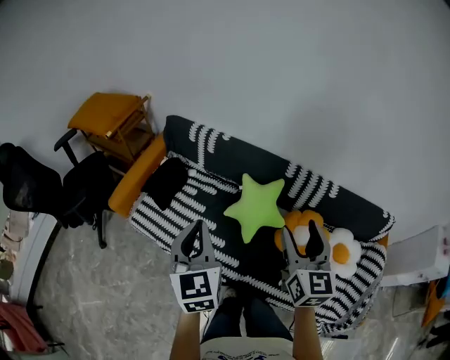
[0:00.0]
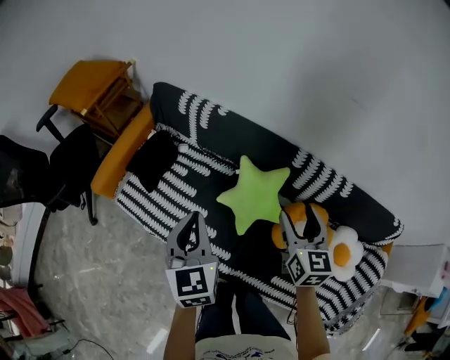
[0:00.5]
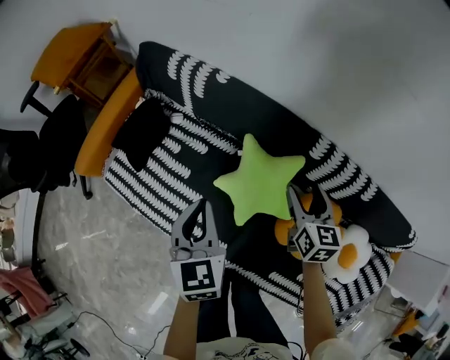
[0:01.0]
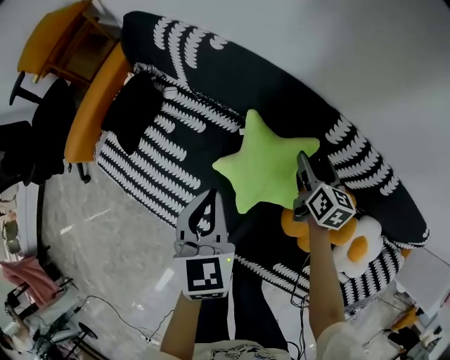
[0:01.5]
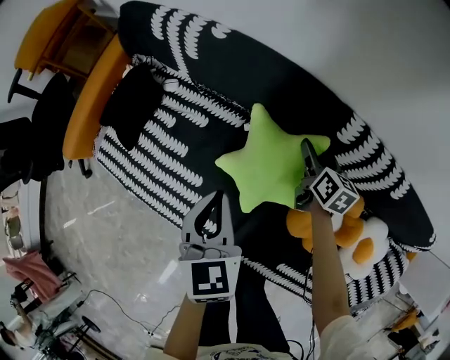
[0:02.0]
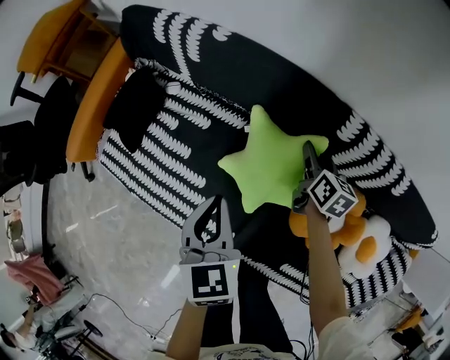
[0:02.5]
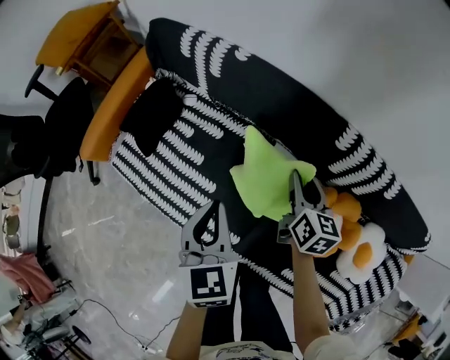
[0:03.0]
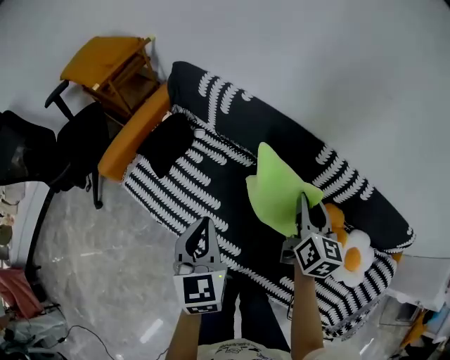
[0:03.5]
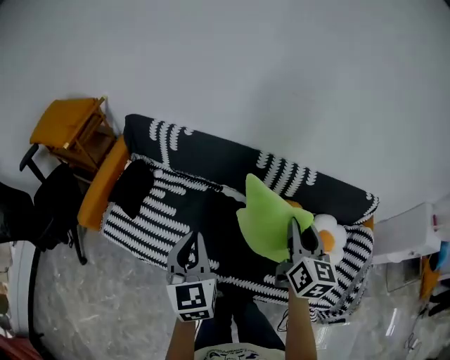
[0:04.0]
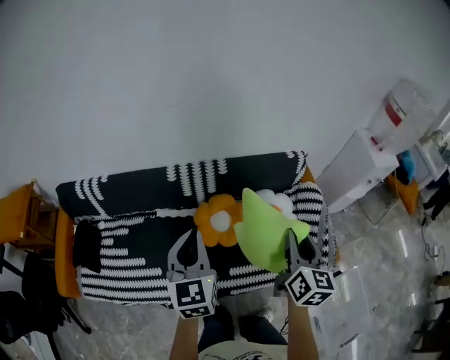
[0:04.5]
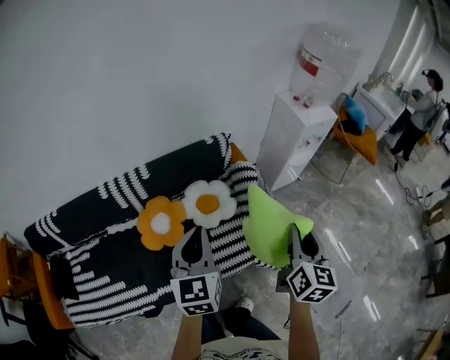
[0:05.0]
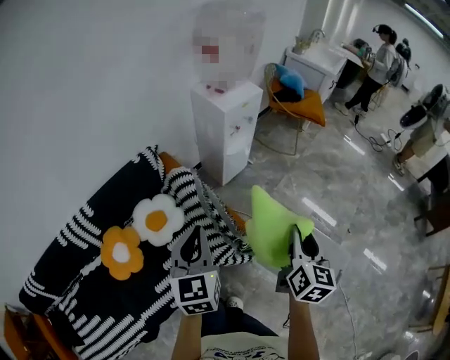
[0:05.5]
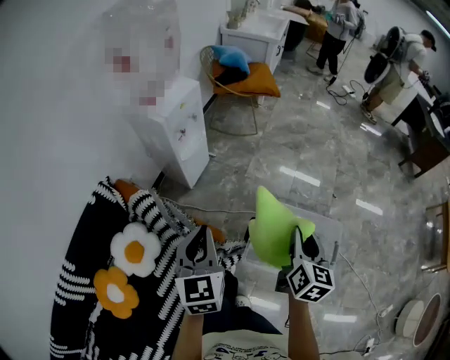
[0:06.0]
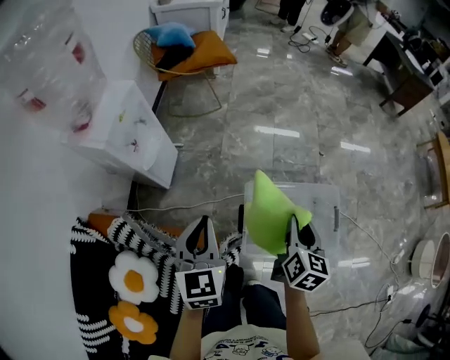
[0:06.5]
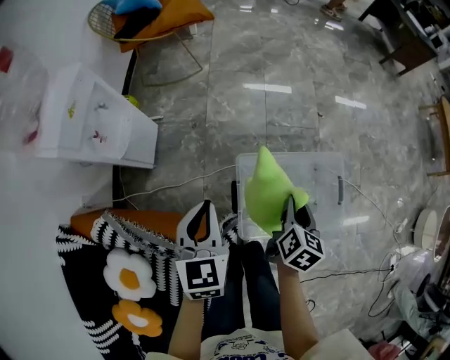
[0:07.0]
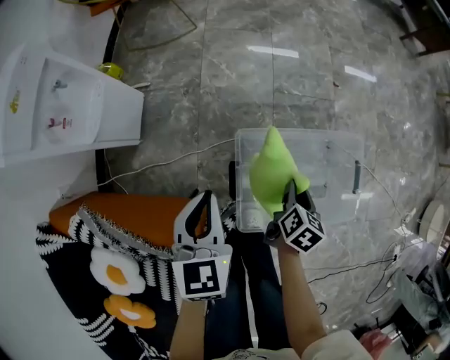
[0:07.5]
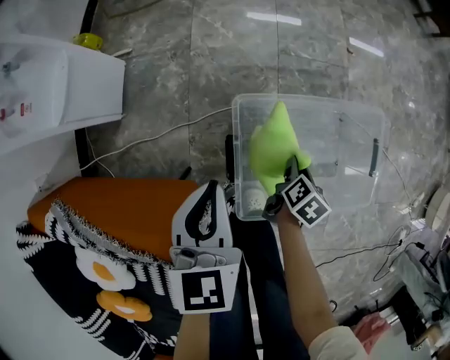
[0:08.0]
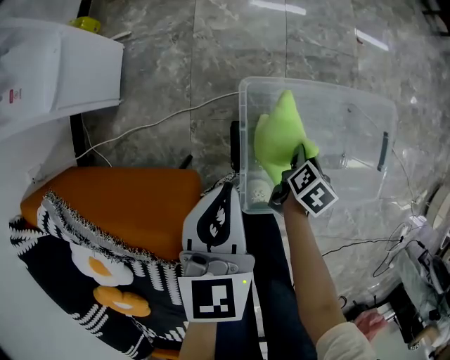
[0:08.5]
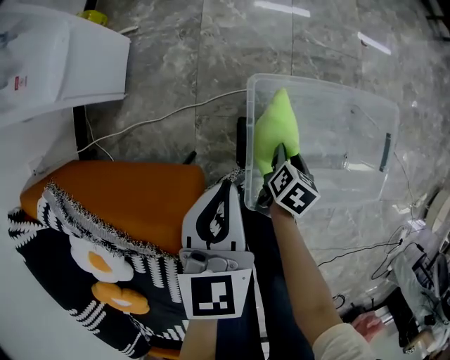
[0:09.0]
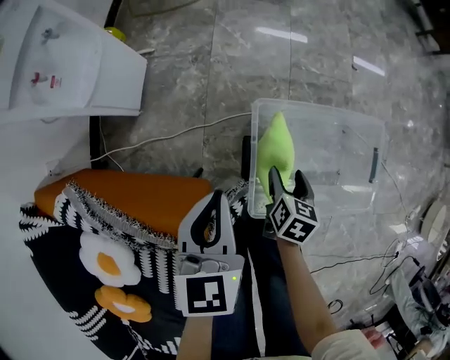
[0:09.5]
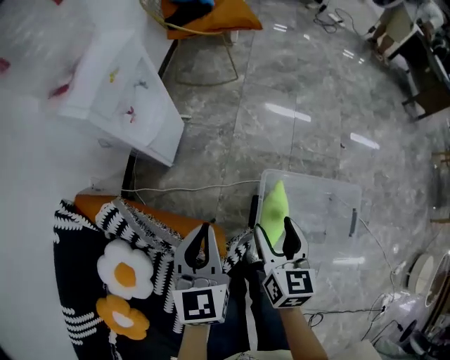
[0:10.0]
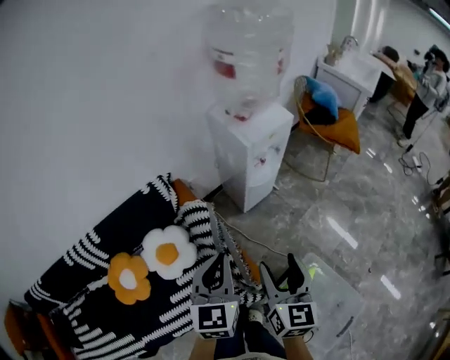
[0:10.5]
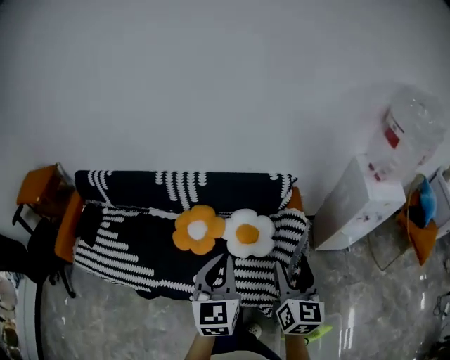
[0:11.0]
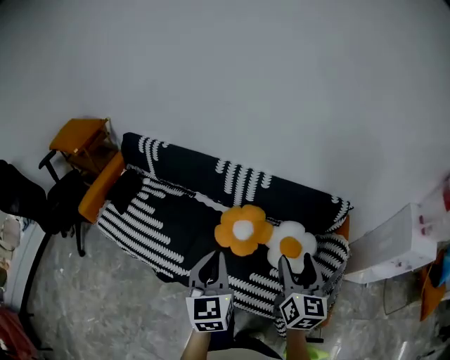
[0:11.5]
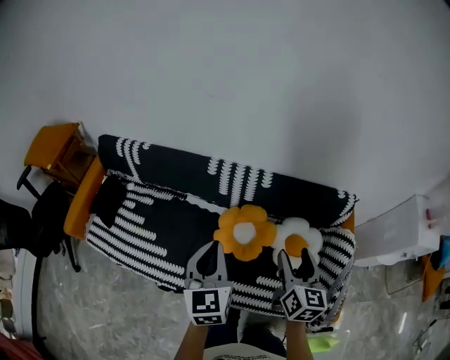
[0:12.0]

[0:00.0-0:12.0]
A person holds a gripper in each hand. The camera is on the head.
0:00.0 to 0:02.0: The two grippers go some 50 cm downward and forward. The right gripper changes its angle by approximately 40 degrees; the left gripper changes its angle by about 20 degrees.
0:02.0 to 0:04.0: The left gripper goes about 35 cm upward and backward, and changes its angle by about 20 degrees. The right gripper heads upward and backward, covering roughly 60 cm, rotates approximately 30 degrees, and closes.
0:04.0 to 0:06.0: Both grippers are carried roughly 1 m. The left gripper changes its angle by some 90 degrees. Meanwhile the right gripper rotates about 90 degrees.
0:06.0 to 0:08.0: Both grippers move downward, approximately 50 cm. The right gripper tilts its fingers some 40 degrees downward. Meanwhile the left gripper rotates about 30 degrees.
0:08.0 to 0:10.0: The left gripper shifts roughly 25 cm upward, while the right gripper travels upward by about 40 cm, turns by some 50 degrees, and opens.
0:10.0 to 0:12.0: The two grippers travel together, roughly 80 cm. The left gripper changes its angle by about 90 degrees, while the right gripper turns by about 80 degrees.

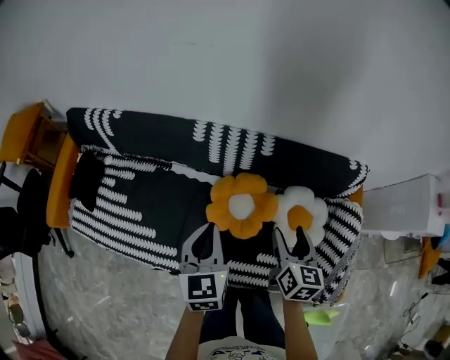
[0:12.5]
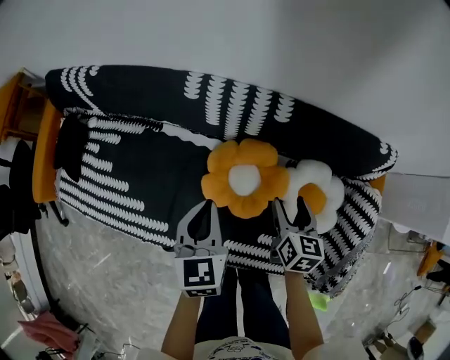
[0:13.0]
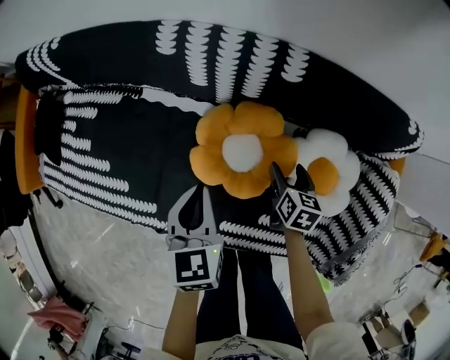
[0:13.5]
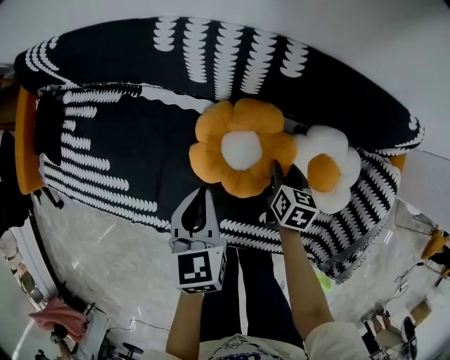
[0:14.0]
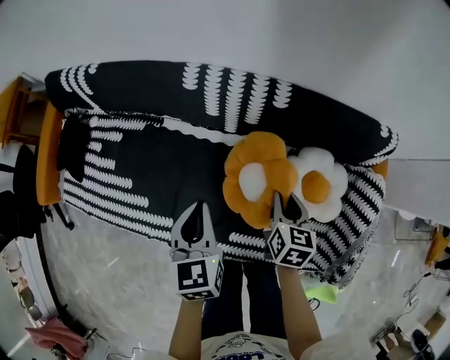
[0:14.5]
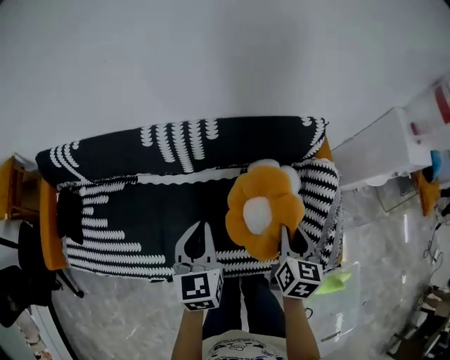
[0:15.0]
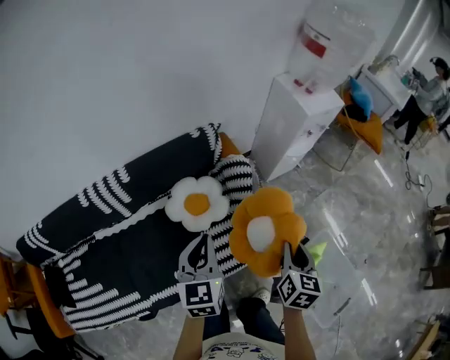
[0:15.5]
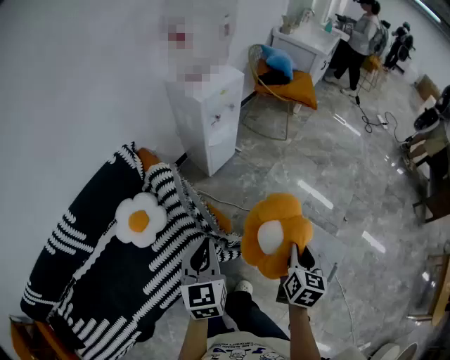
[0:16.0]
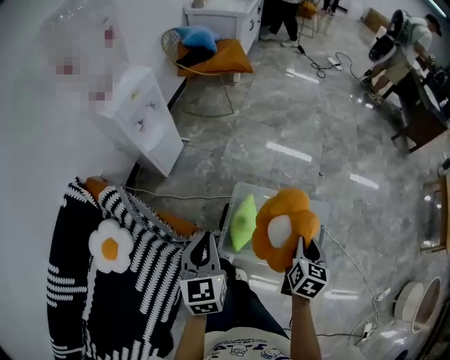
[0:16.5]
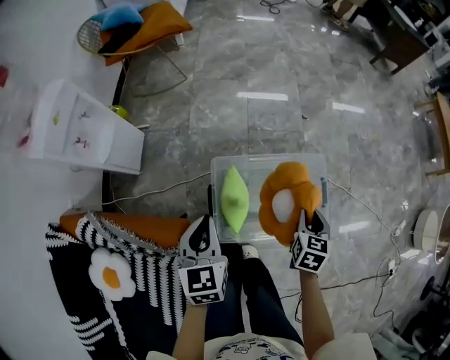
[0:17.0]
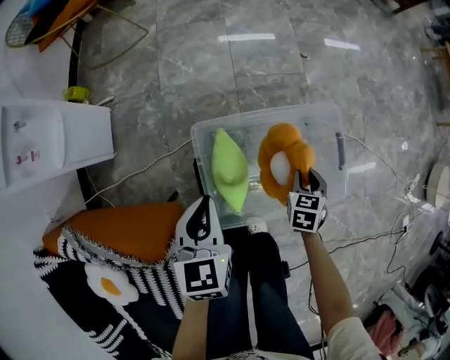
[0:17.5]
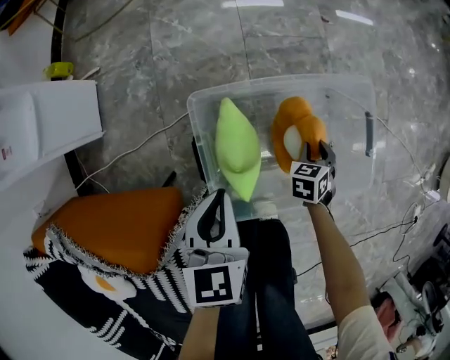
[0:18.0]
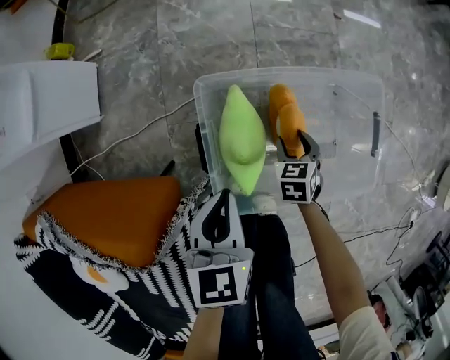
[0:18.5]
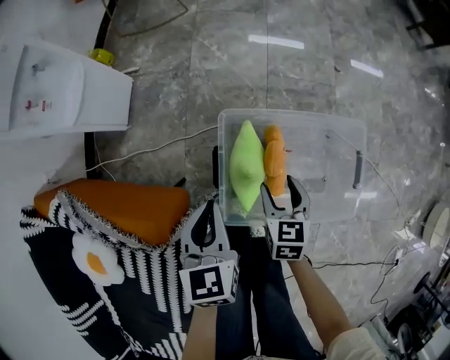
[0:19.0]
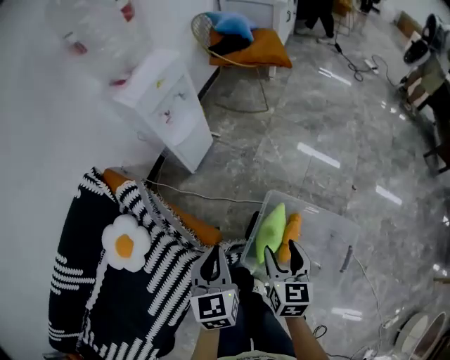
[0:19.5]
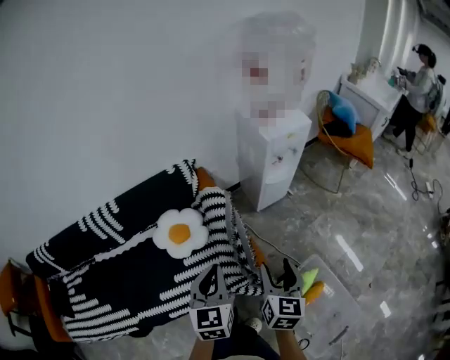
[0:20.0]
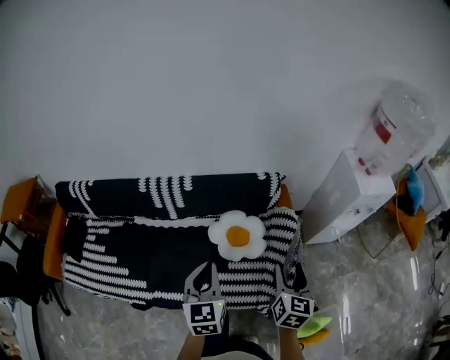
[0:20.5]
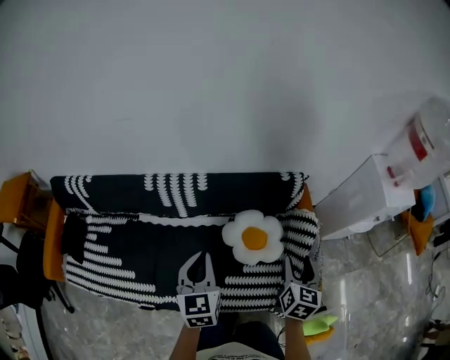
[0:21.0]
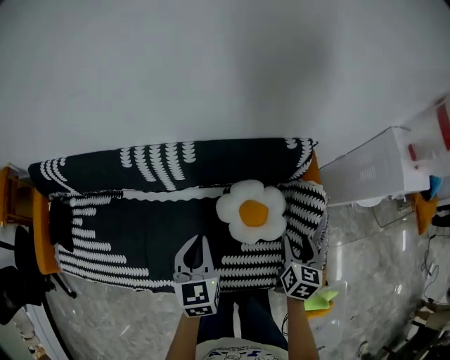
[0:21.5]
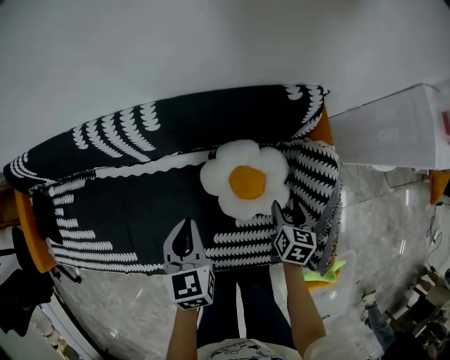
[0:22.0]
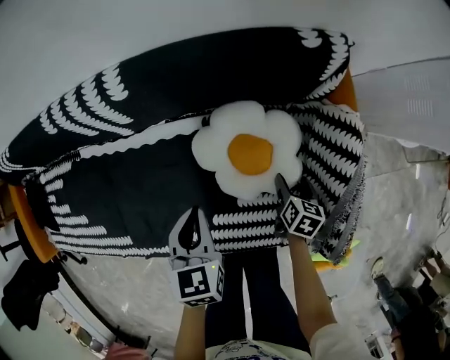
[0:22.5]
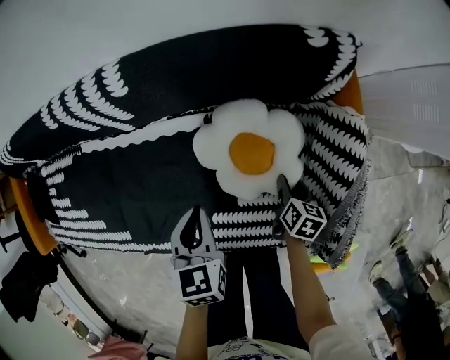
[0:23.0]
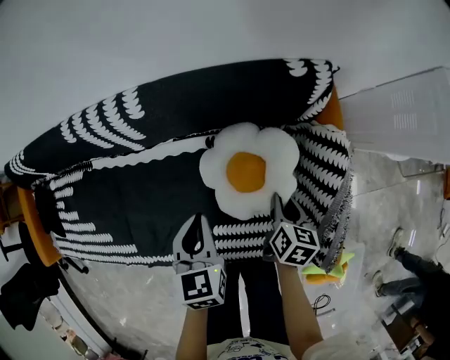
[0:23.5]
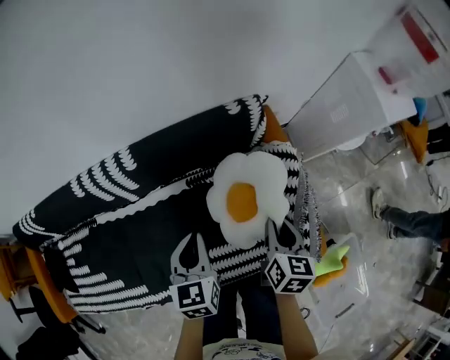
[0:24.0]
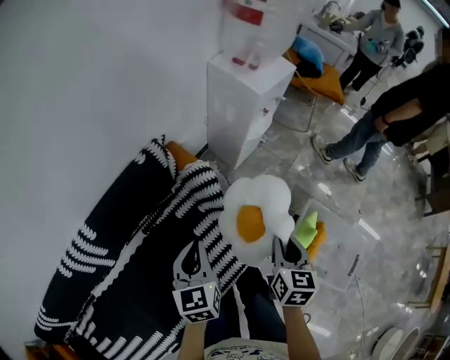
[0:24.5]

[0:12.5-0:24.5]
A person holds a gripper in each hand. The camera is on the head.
0:12.5 to 0:14.5: Both grippers move downward, approximately 15 cm. The right gripper closes up.
0:14.5 to 0:16.5: The two grippers travel together, approximately 1 m. The right gripper swivels roughly 90 degrees; the left gripper rotates approximately 90 degrees.
0:16.5 to 0:18.5: The two grippers go about 50 cm downward. The left gripper changes its angle by about 30 degrees. Meanwhile the right gripper swivels about 30 degrees, and opens.
0:18.5 to 0:20.5: Both grippers are carried approximately 70 cm. The left gripper turns by some 90 degrees, while the right gripper goes some 70 cm upward, and points its fingers roughly 40 degrees further upward.
0:20.5 to 0:22.5: The two grippers go roughly 50 cm downward and forward. The right gripper tips its fingers downward by about 40 degrees. The left gripper swivels approximately 30 degrees.
0:22.5 to 0:24.5: The right gripper shifts approximately 40 cm upward, swivels some 40 degrees, and closes its fingers, while the left gripper goes approximately 25 cm upward, and swivels some 50 degrees.

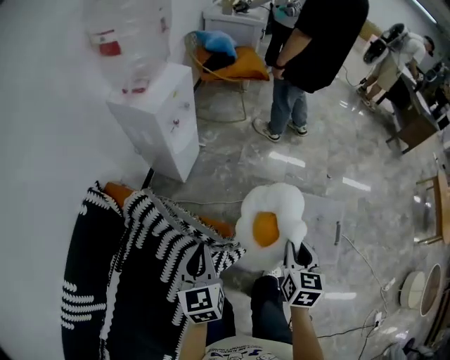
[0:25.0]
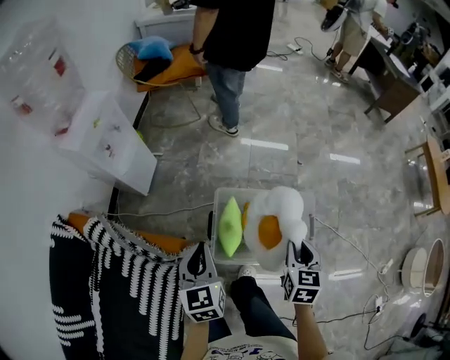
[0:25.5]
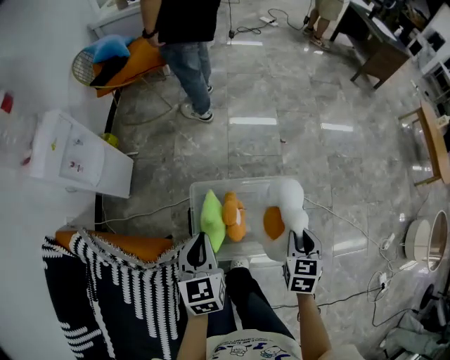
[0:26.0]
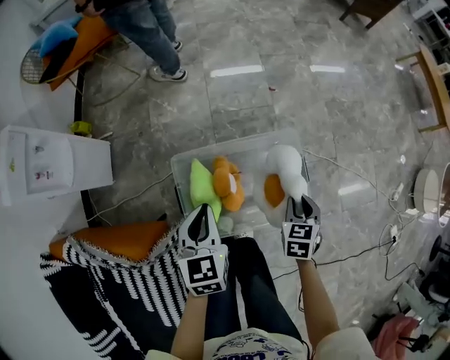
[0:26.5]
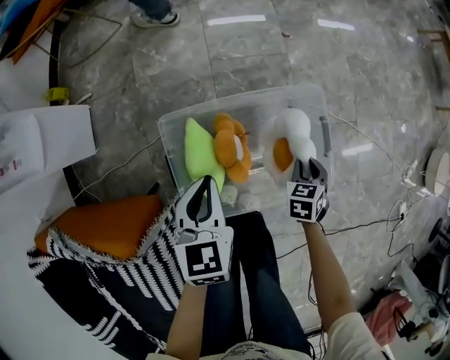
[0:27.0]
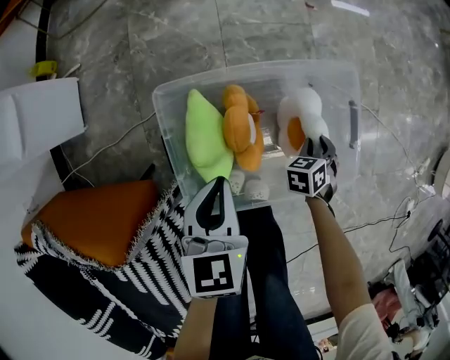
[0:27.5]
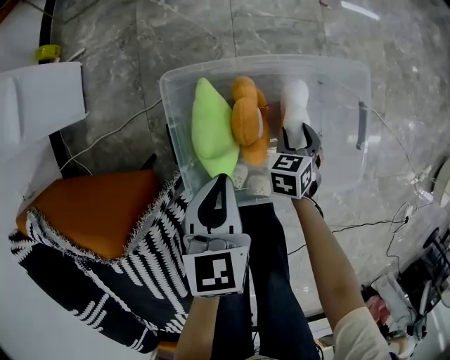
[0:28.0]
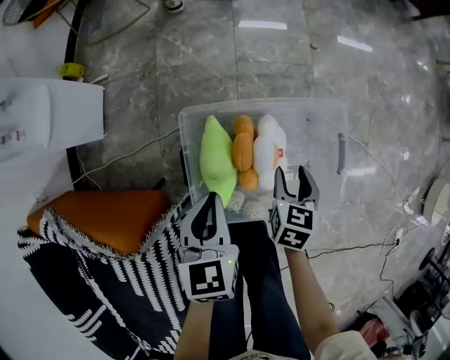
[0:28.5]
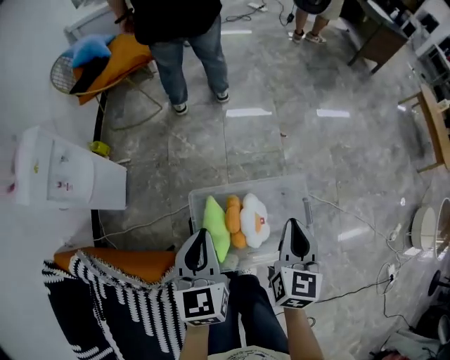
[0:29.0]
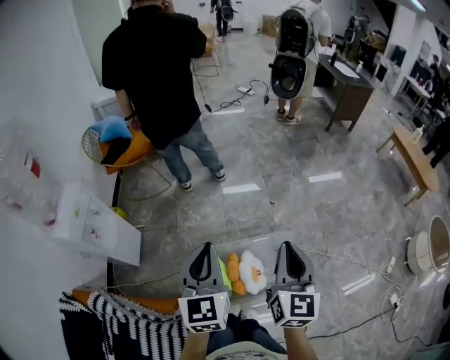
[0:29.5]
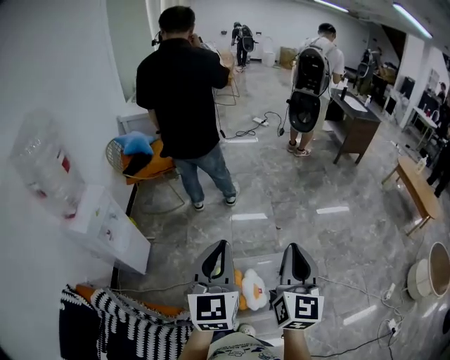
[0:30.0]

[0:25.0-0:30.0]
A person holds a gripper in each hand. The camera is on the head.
0:25.0 to 0:27.5: The pair of grippers is taken some 50 cm. The left gripper turns by approximately 30 degrees; the right gripper goes about 60 cm downward, and rotates roughly 50 degrees.
0:27.5 to 0:30.0: Both grippers move upward, about 80 cm. The right gripper angles its fingers upward, by roughly 60 degrees. The left gripper tilts its fingers roughly 40 degrees upward.
